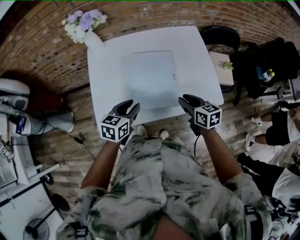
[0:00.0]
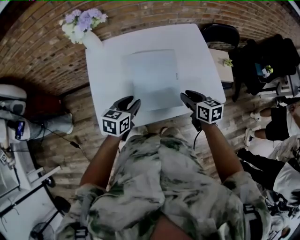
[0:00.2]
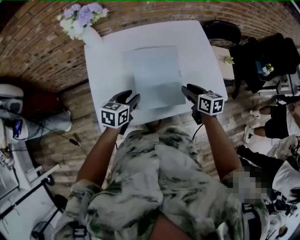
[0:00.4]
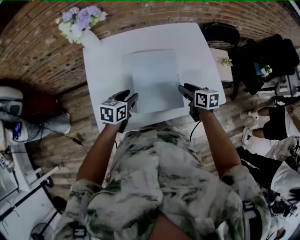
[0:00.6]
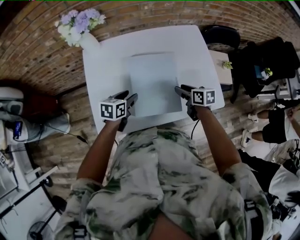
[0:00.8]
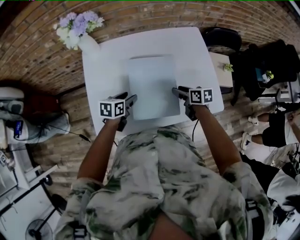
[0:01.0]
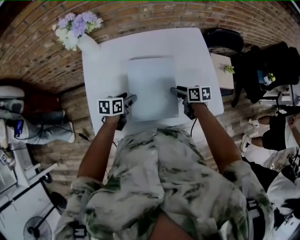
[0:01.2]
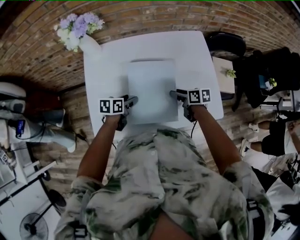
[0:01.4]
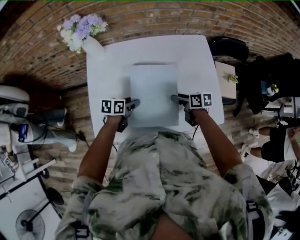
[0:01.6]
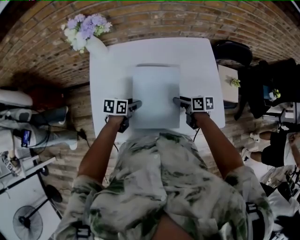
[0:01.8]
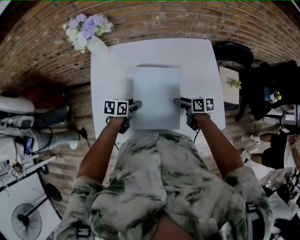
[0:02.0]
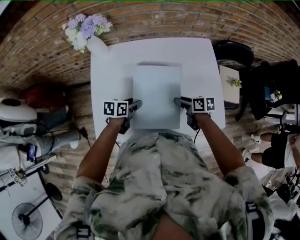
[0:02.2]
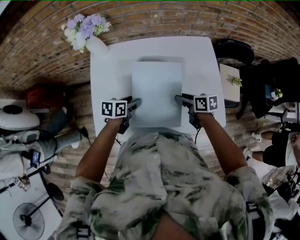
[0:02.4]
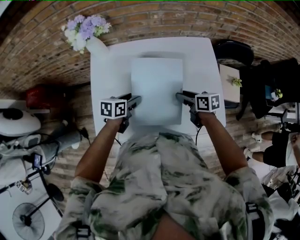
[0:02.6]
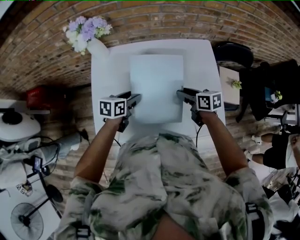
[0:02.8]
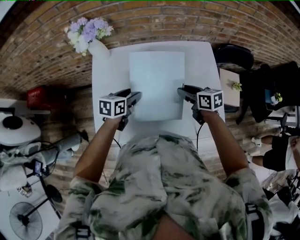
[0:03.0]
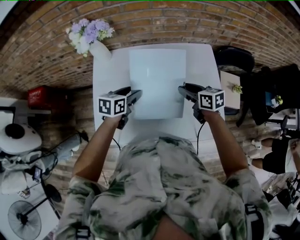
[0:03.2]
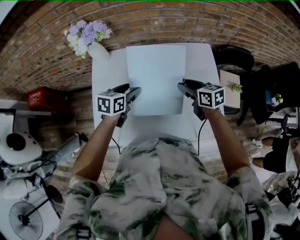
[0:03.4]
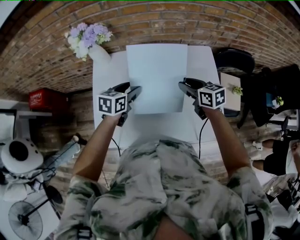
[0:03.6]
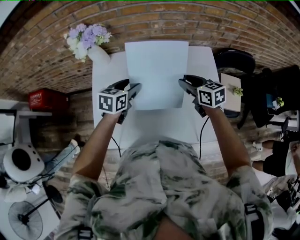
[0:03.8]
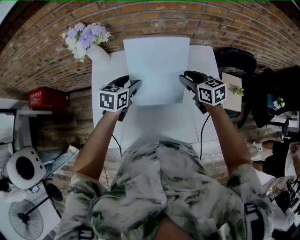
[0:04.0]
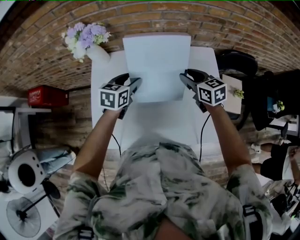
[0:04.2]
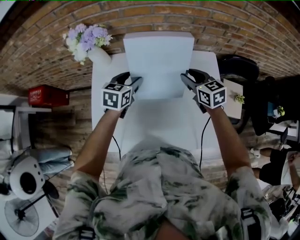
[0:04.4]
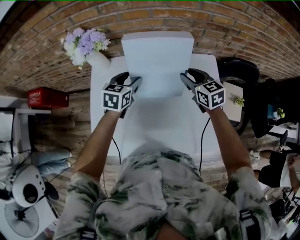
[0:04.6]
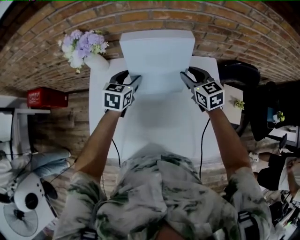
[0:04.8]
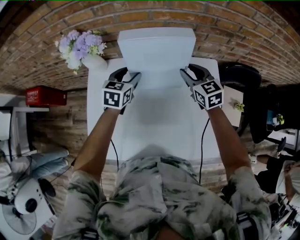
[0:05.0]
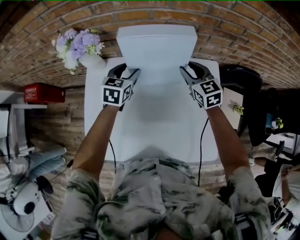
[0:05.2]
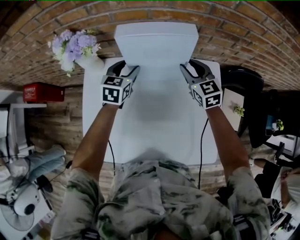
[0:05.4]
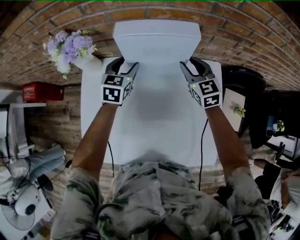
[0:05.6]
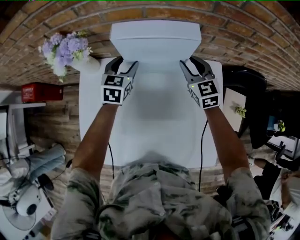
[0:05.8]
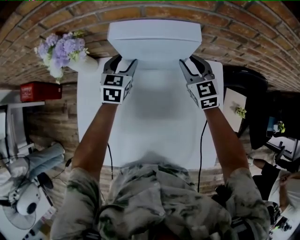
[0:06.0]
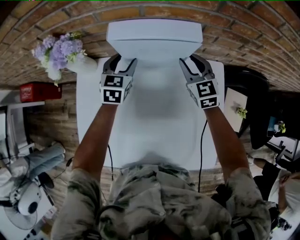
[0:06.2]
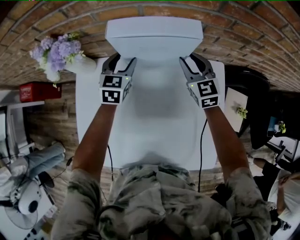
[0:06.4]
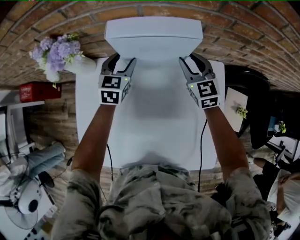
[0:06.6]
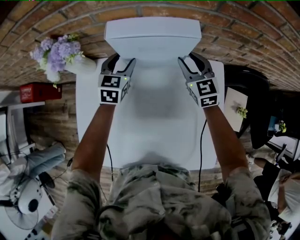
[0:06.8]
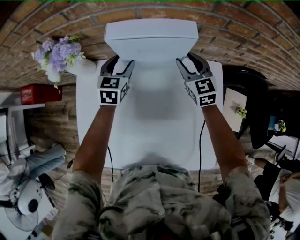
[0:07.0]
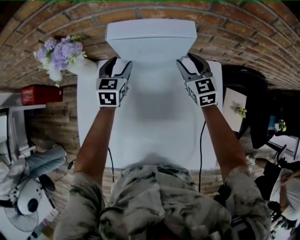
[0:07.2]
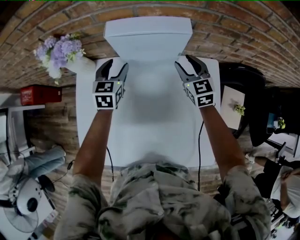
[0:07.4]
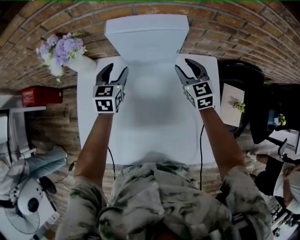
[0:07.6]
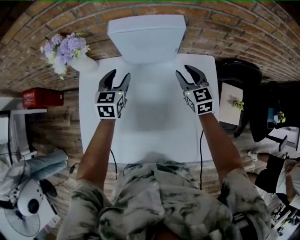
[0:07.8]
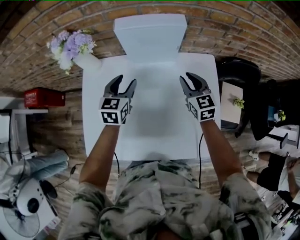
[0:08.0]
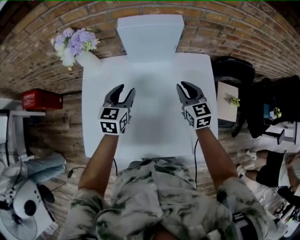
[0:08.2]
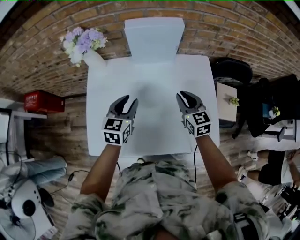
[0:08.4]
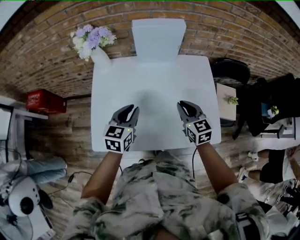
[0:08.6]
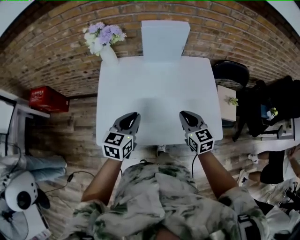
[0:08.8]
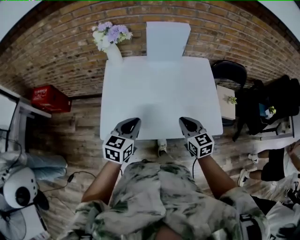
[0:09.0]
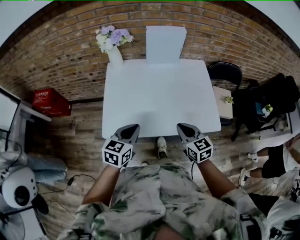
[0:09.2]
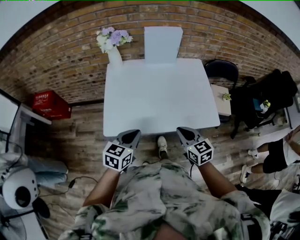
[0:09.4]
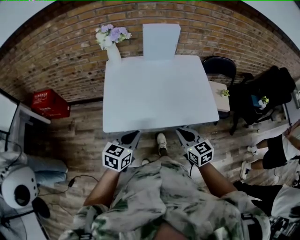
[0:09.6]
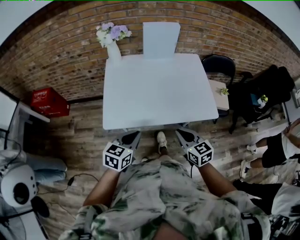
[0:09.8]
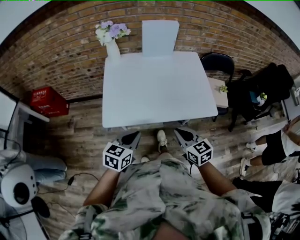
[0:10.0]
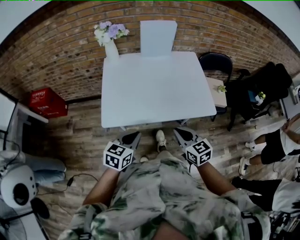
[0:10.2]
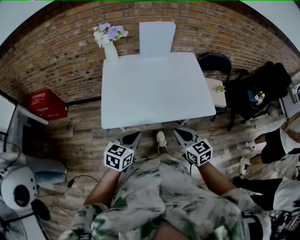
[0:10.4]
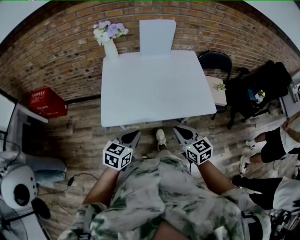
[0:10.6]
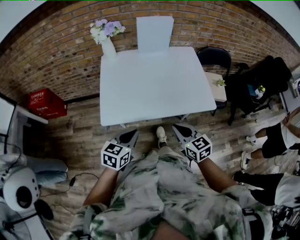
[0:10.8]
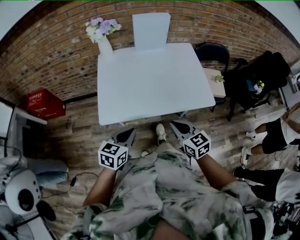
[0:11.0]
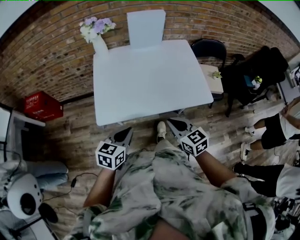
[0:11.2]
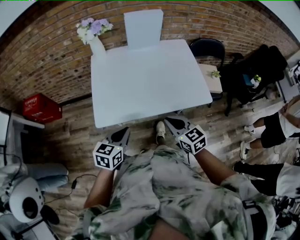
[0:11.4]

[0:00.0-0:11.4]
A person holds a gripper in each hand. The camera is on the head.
0:00.0 to 0:01.4: The grippers both shift forward and downward by roughly 20 cm. The right gripper rotates roughly 20 degrees, and opens; the left gripper swivels about 30 degrees, and opens.
0:01.4 to 0:02.8: The grippers both shift upward by some 5 cm.
0:02.8 to 0:04.2: The grippers both shift forward and upward by some 15 cm. The right gripper rotates roughly 30 degrees.
0:04.2 to 0:05.6: The two grippers go about 15 cm forward. The right gripper changes its angle by about 20 degrees.
0:05.6 to 0:07.2: The grippers move only a little.
0:07.2 to 0:08.6: Both grippers move backward, roughly 35 cm. The right gripper closes up. Meanwhile the left gripper closes.
0:08.6 to 0:10.0: Both grippers travel together backward, approximately 35 cm.
0:10.0 to 0:11.4: There are only small adjustments of the grippers.

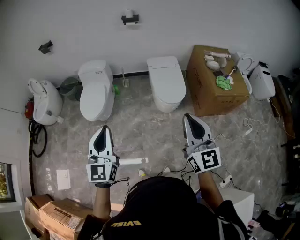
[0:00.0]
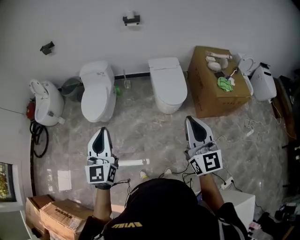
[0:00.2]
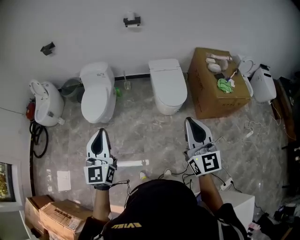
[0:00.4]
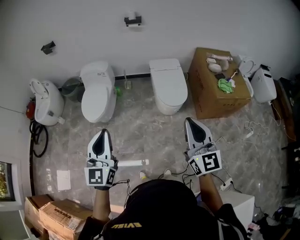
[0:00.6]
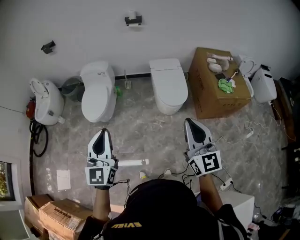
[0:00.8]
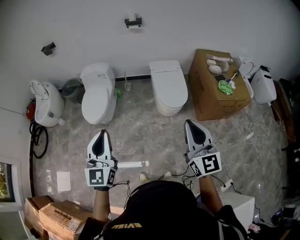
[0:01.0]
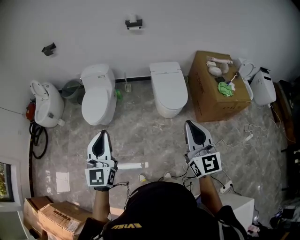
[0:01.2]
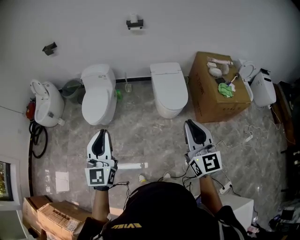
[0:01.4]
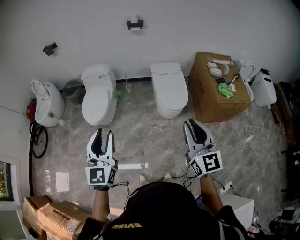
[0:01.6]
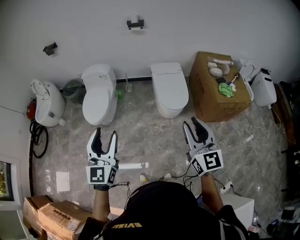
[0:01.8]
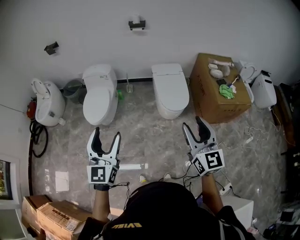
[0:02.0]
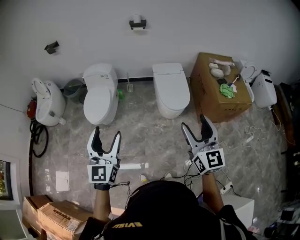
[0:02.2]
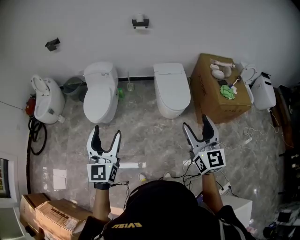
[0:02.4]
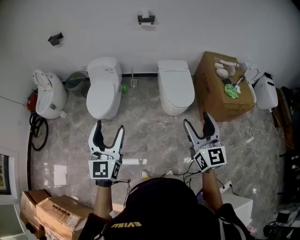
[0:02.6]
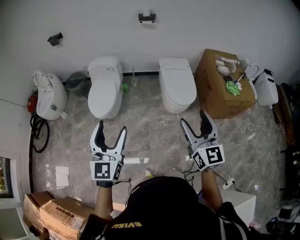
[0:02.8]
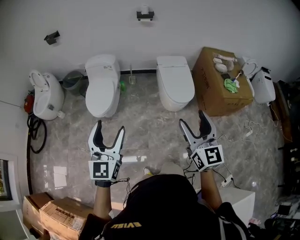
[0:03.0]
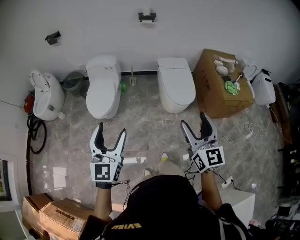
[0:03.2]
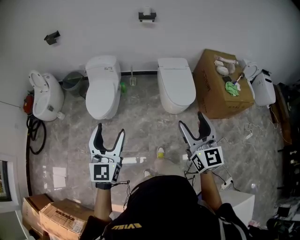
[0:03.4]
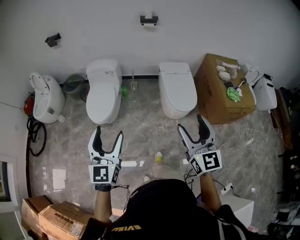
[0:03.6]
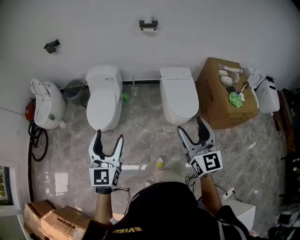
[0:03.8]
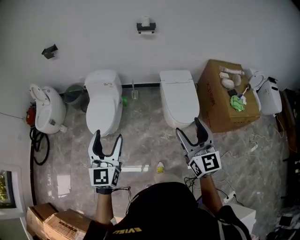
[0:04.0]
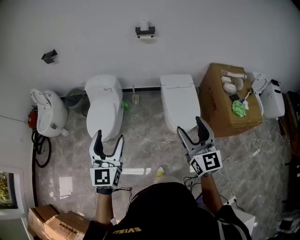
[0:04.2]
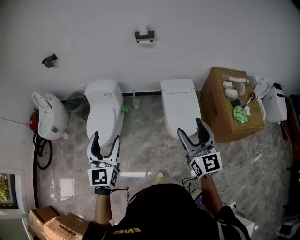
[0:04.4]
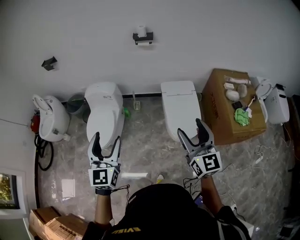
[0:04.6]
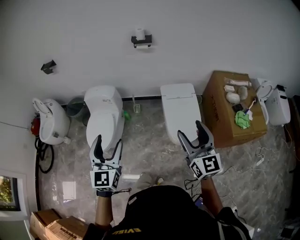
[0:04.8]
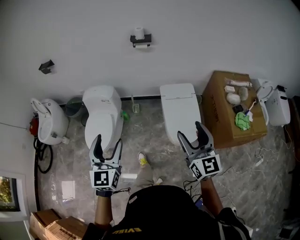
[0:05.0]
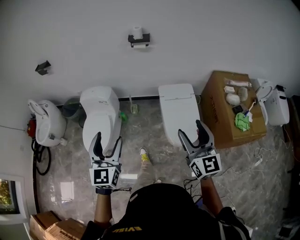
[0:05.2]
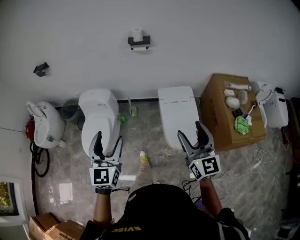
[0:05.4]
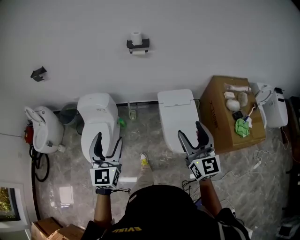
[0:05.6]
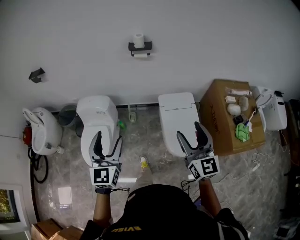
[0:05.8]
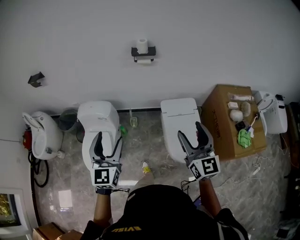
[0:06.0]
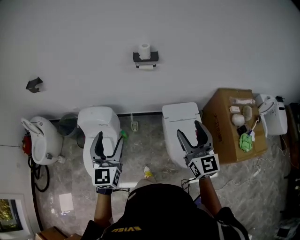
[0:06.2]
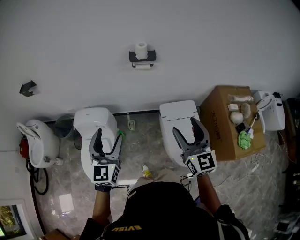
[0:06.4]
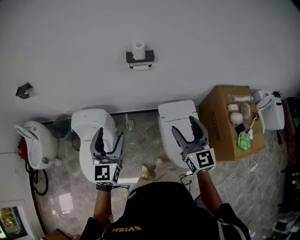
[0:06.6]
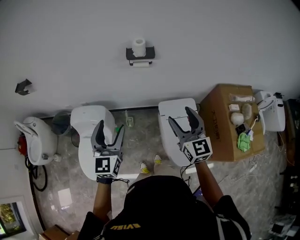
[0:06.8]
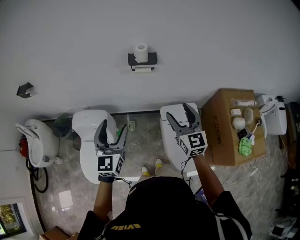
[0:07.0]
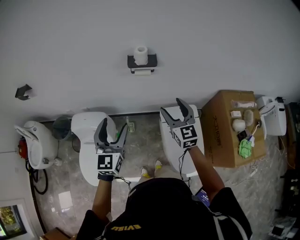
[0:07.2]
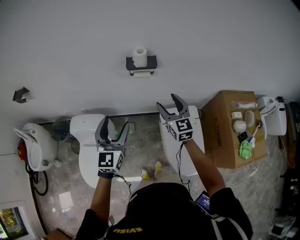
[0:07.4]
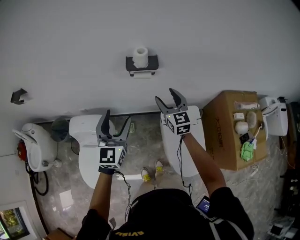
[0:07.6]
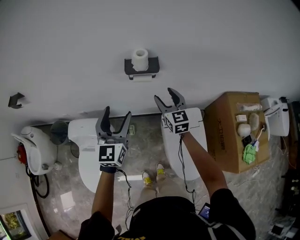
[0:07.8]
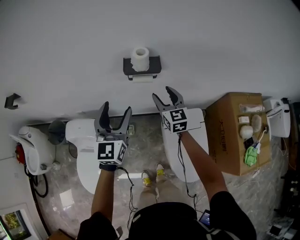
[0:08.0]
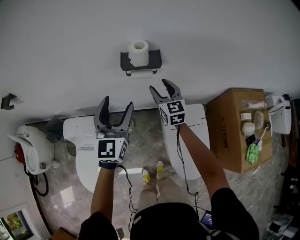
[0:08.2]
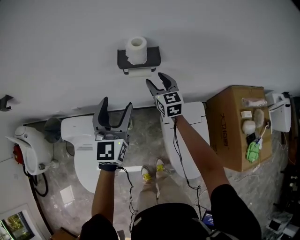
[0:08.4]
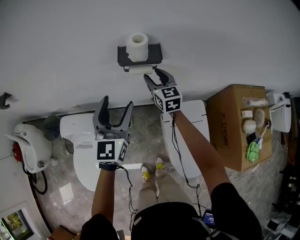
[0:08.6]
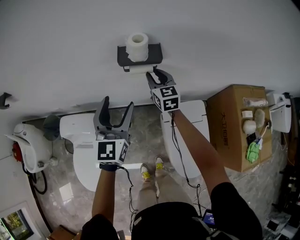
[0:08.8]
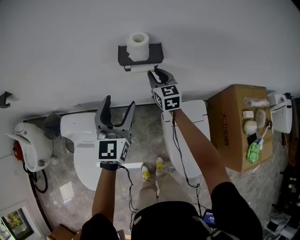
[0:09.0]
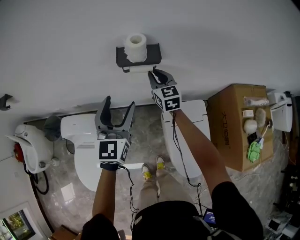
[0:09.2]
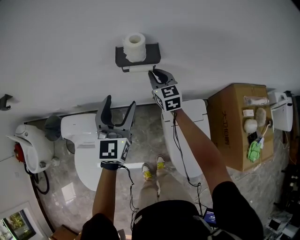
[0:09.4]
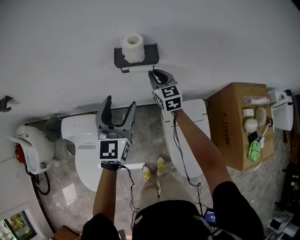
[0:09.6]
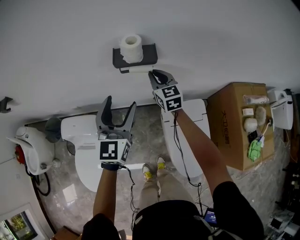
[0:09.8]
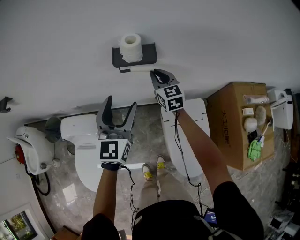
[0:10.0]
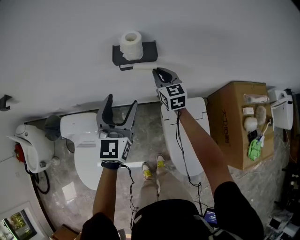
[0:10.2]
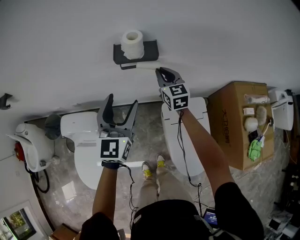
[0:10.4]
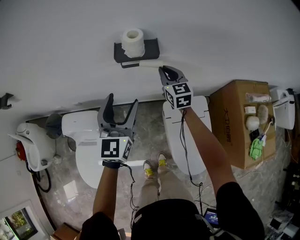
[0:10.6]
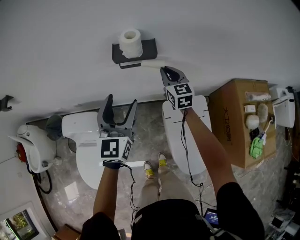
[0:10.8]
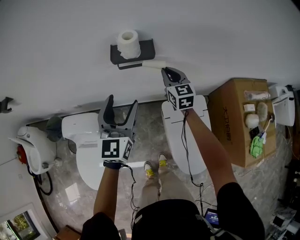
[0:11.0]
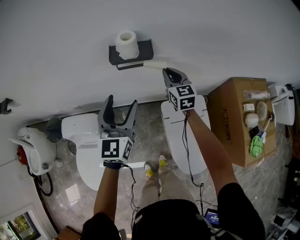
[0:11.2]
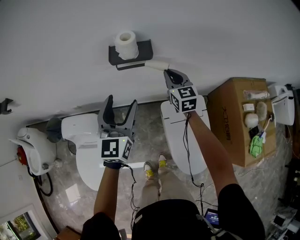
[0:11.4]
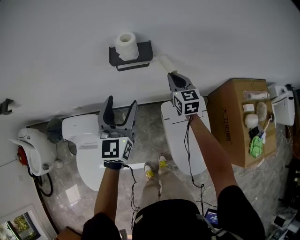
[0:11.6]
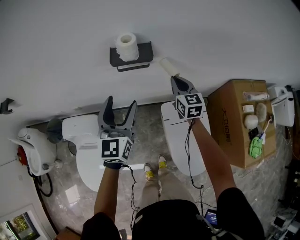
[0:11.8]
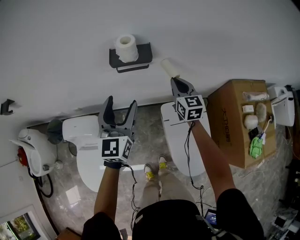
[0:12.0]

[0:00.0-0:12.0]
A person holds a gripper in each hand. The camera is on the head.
0:00.0 to 0:01.6: The left gripper opens.
0:01.6 to 0:03.0: The two grippers go some 10 cm to the left. The right gripper opens its fingers, while the left gripper opens up.
0:03.0 to 0:04.4: The grippers both shift forward by approximately 25 cm.
0:04.4 to 0:06.0: The grippers both shift forward by approximately 25 cm.
0:06.0 to 0:07.6: The two grippers go some 35 cm forward.
0:07.6 to 0:09.0: The left gripper shifts roughly 10 cm forward and downward. Meanwhile the right gripper shifts roughly 20 cm forward and downward, and closes its fingers.
0:09.0 to 0:10.4: The grippers make only small movements.
0:10.4 to 0:12.0: The right gripper shifts about 10 cm to the right.

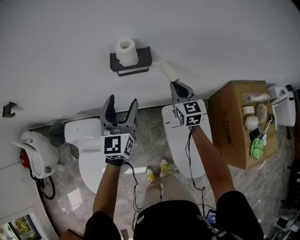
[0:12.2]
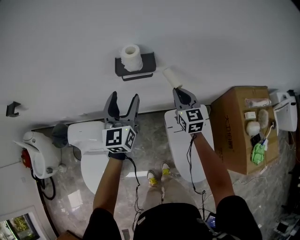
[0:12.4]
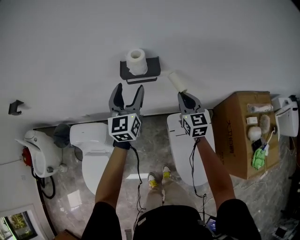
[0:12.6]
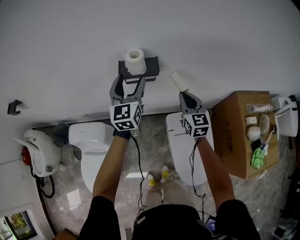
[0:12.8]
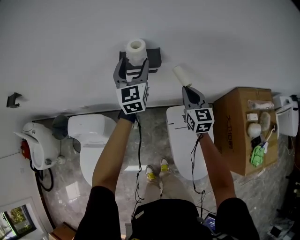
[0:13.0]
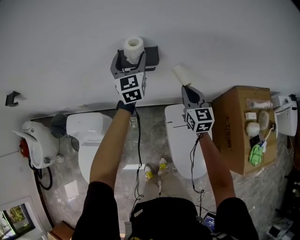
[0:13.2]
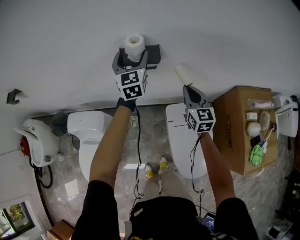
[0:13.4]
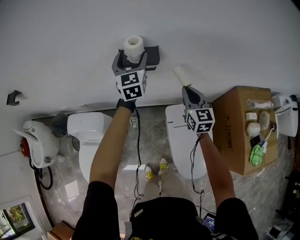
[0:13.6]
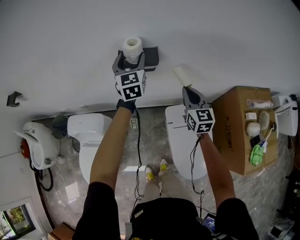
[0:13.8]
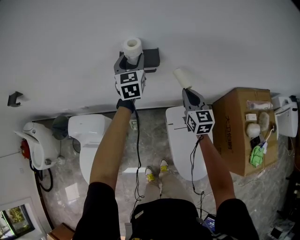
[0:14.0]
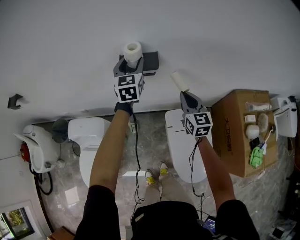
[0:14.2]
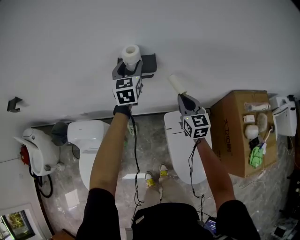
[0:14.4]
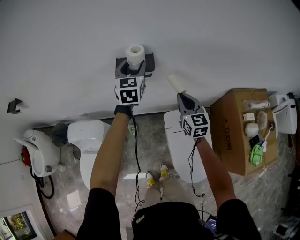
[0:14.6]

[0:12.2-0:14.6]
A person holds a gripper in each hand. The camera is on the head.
0:12.2 to 0:13.4: The left gripper moves forward, roughly 15 cm.
0:13.4 to 0:14.6: The grippers make only small movements.
